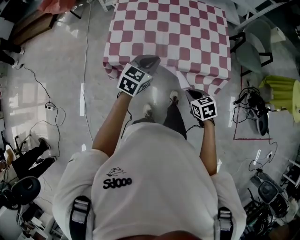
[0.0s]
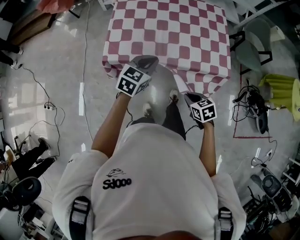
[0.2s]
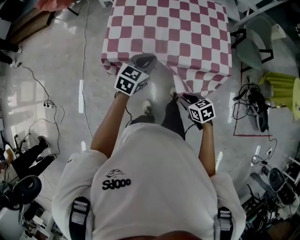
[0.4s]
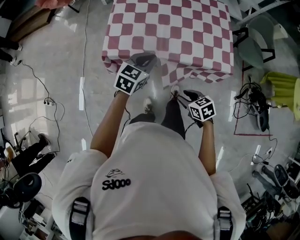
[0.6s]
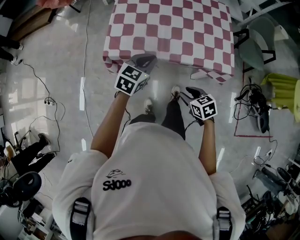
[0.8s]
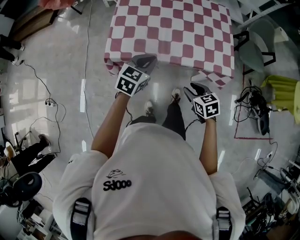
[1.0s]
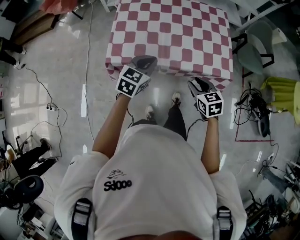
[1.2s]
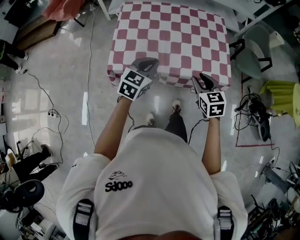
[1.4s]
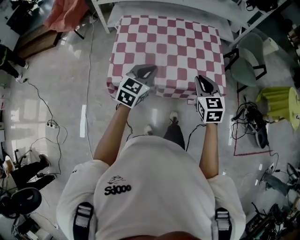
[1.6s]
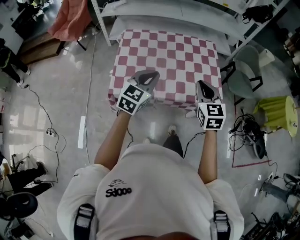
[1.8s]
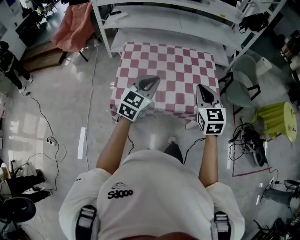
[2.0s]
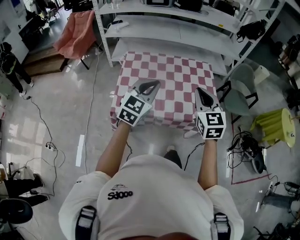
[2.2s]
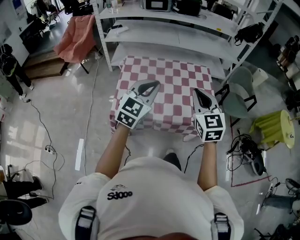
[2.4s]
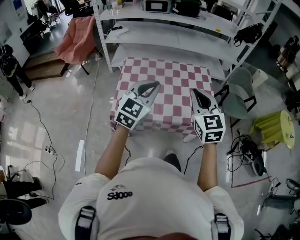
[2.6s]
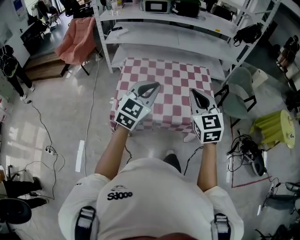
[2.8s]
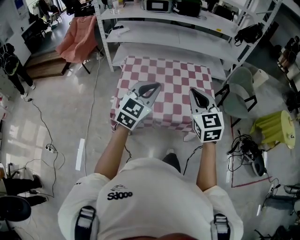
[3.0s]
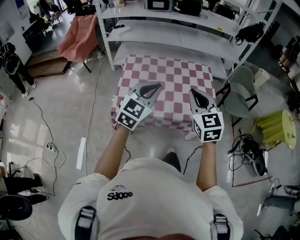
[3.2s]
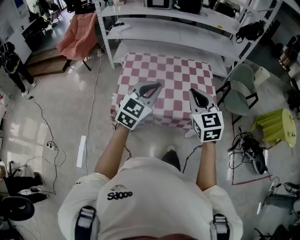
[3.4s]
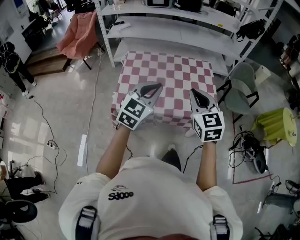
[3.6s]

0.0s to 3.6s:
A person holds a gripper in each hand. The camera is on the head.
0.0s to 1.8s: The left gripper moves upward, about 10 cm. The right gripper moves upward and forward, approximately 25 cm, tilts its fingers roughly 30 degrees upward, and opens, then closes once more.
1.8s to 3.6s: The grippers both shift upward and backward by roughly 10 cm.

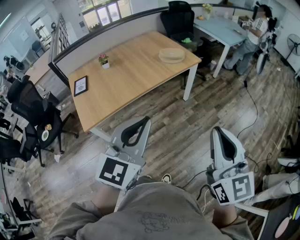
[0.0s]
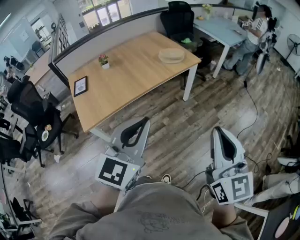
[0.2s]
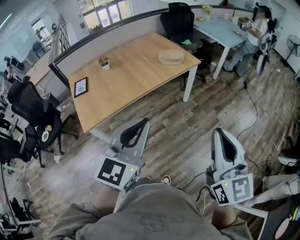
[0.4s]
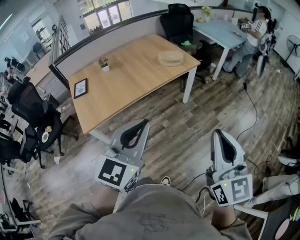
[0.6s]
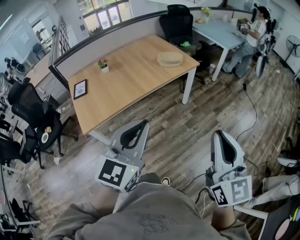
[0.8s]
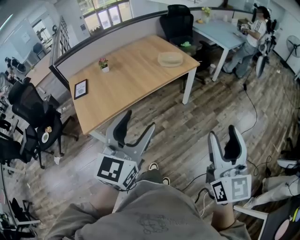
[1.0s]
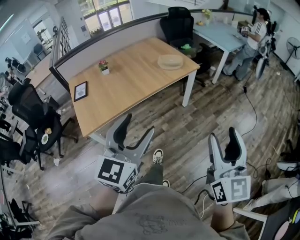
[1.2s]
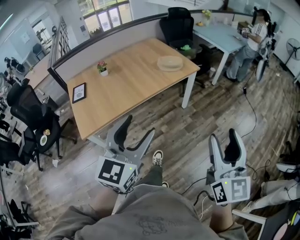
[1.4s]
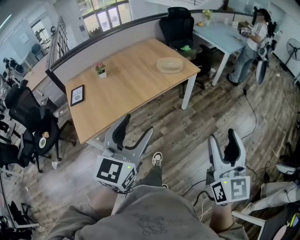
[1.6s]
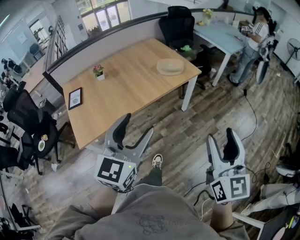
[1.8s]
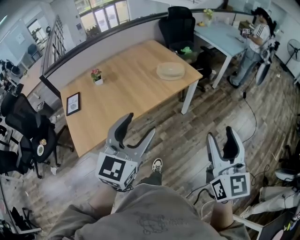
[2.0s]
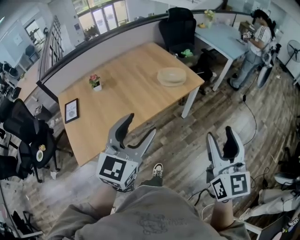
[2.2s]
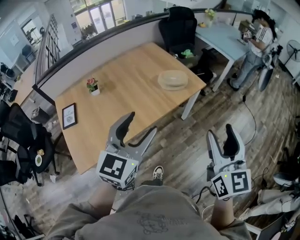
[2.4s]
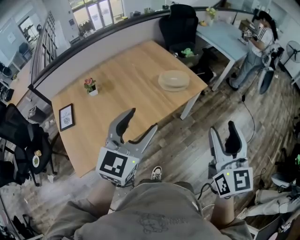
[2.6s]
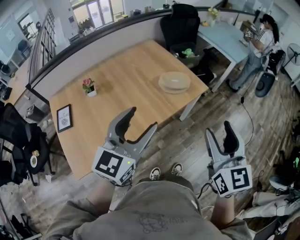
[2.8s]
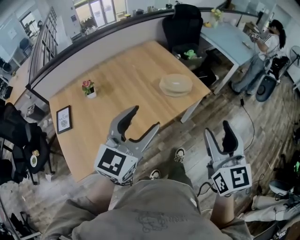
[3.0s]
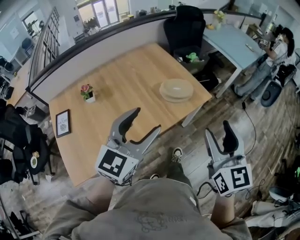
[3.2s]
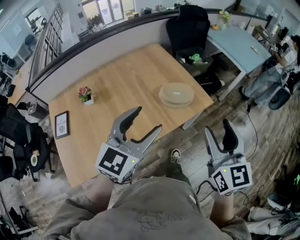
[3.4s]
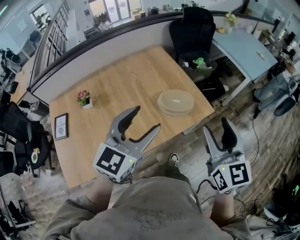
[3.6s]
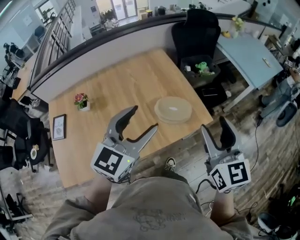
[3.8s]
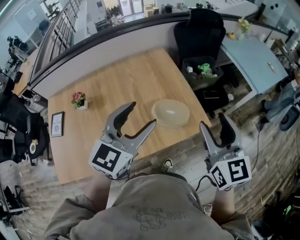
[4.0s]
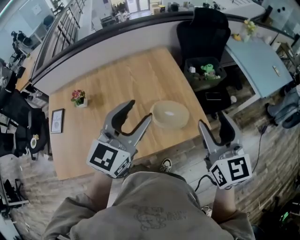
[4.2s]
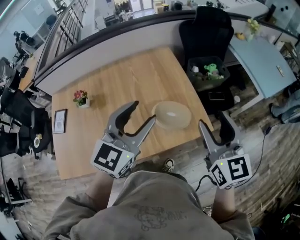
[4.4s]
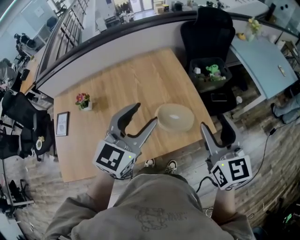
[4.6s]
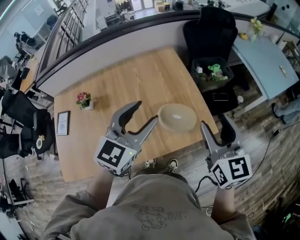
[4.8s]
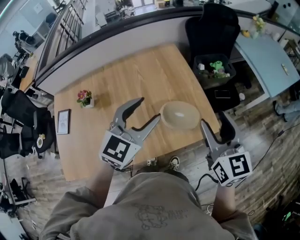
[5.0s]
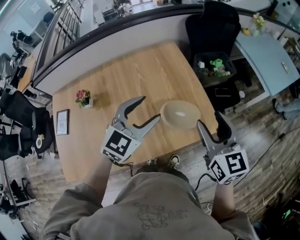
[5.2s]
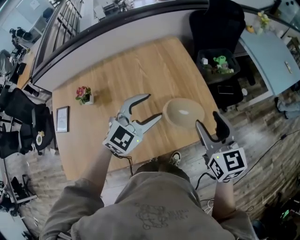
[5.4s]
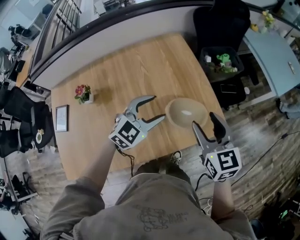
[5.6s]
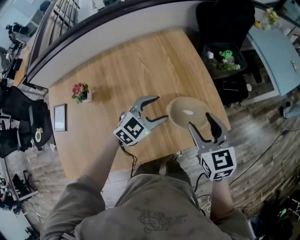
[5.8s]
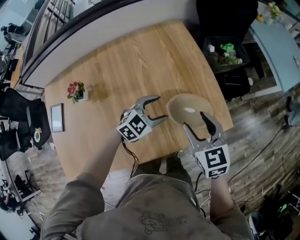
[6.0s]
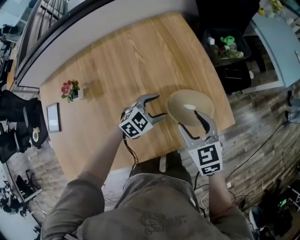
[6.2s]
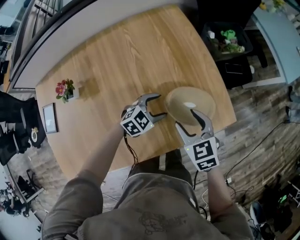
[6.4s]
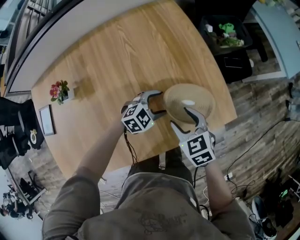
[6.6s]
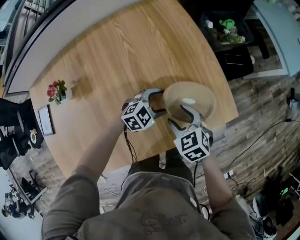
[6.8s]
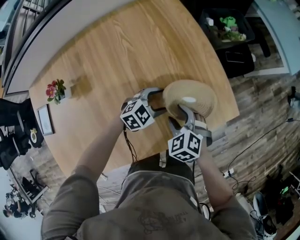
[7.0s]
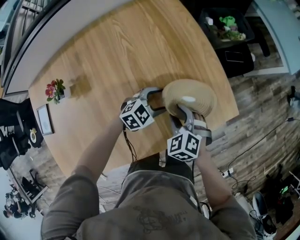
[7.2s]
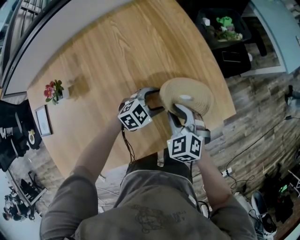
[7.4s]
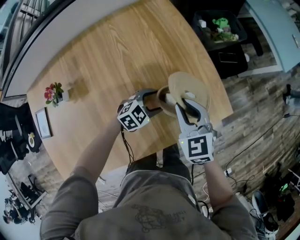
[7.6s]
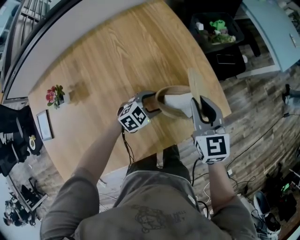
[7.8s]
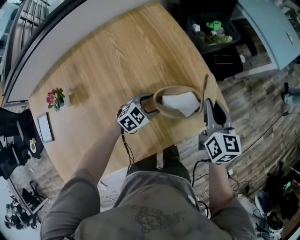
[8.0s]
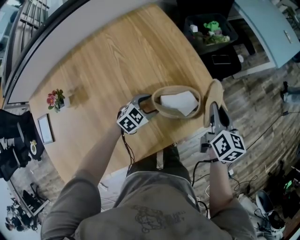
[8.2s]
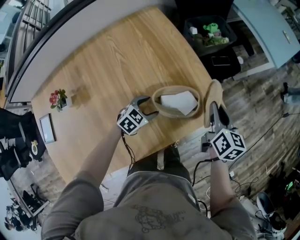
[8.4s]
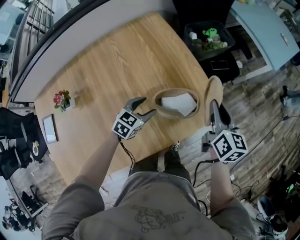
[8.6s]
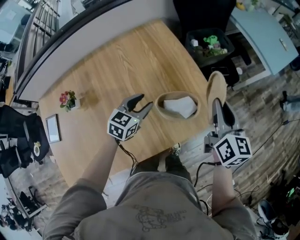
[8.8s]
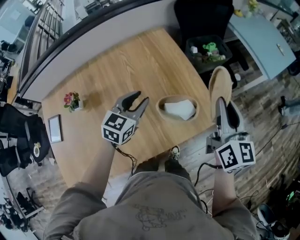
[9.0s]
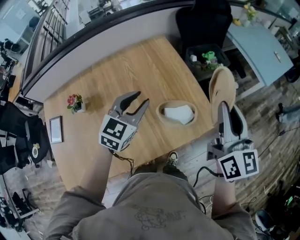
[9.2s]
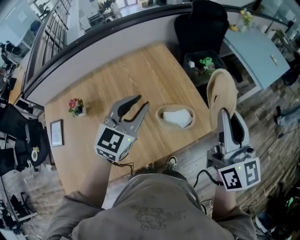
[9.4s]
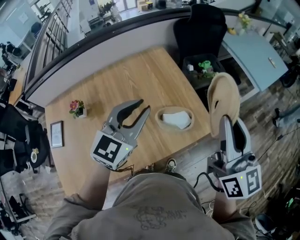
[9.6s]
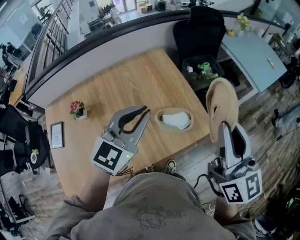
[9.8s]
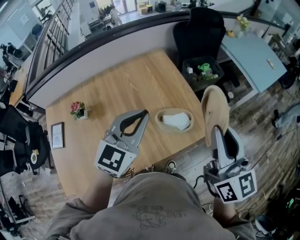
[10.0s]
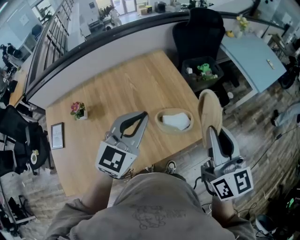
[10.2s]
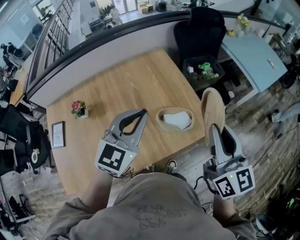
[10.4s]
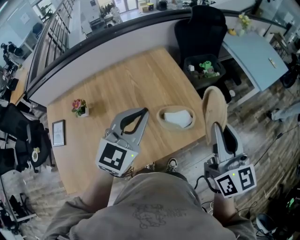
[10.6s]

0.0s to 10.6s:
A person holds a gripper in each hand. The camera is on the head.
0.0s to 1.6s: The two grippers go some 5 cm forward. The right gripper opens its fingers, while the left gripper opens up.
1.6s to 3.0s: The two grippers go about 35 cm forward.
3.0s to 4.6s: The grippers both shift forward by some 30 cm. The right gripper rotates roughly 20 degrees.
4.6s to 6.0s: The left gripper shifts roughly 30 cm downward, and rotates roughly 40 degrees. Meanwhile the right gripper heads downward and to the left, covering roughly 25 cm, and changes its angle by roughly 20 degrees.
6.0s to 7.6s: The left gripper is displaced downward by roughly 15 cm. The right gripper heads downward, covering about 10 cm, and closes its fingers.
7.6s to 9.0s: The right gripper is displaced upward and to the right by about 25 cm, and swivels approximately 40 degrees, while the left gripper is displaced upward by about 25 cm, rotates approximately 40 degrees, and closes.
9.0s to 10.6s: The right gripper heads backward and upward, covering about 15 cm. Meanwhile the left gripper travels upward and backward by approximately 20 cm, and closes its fingers.

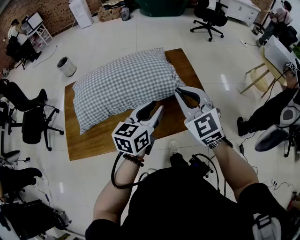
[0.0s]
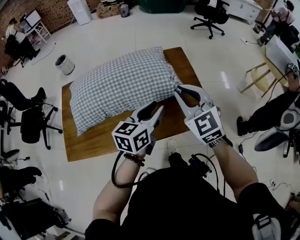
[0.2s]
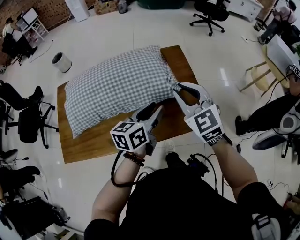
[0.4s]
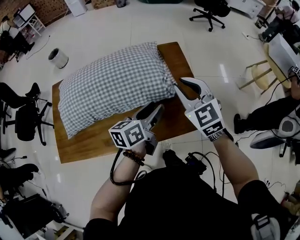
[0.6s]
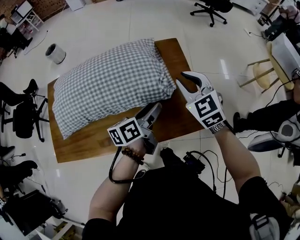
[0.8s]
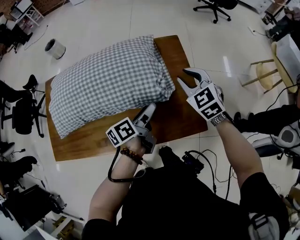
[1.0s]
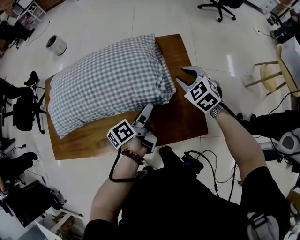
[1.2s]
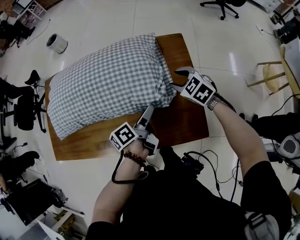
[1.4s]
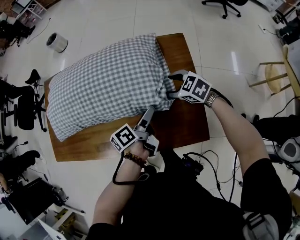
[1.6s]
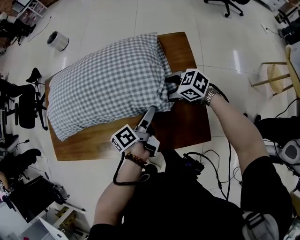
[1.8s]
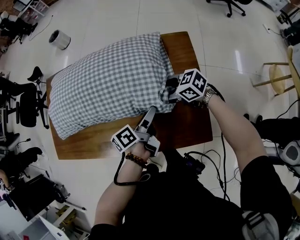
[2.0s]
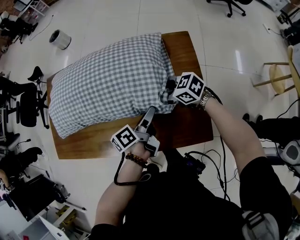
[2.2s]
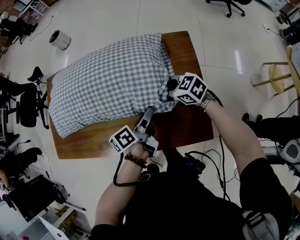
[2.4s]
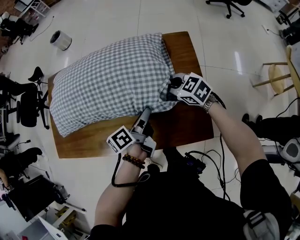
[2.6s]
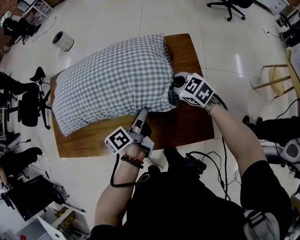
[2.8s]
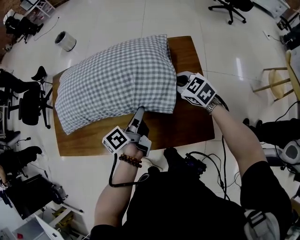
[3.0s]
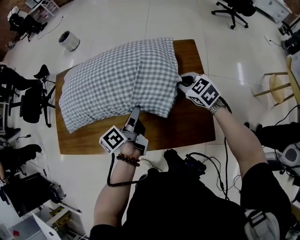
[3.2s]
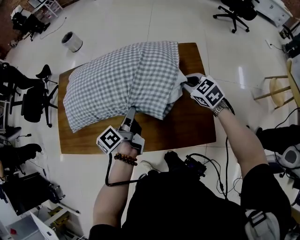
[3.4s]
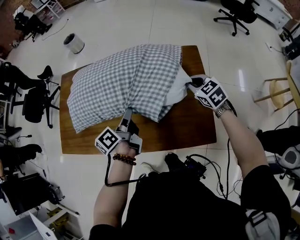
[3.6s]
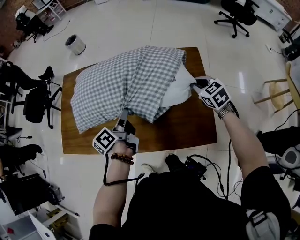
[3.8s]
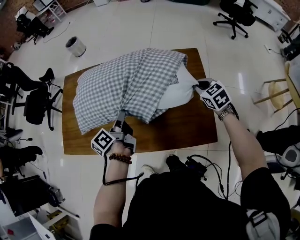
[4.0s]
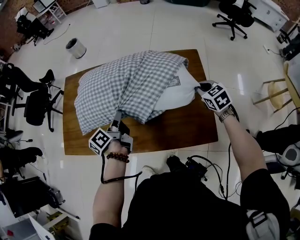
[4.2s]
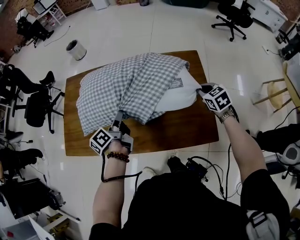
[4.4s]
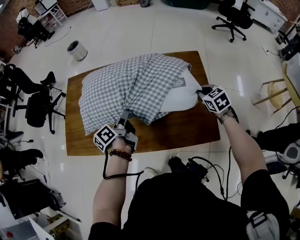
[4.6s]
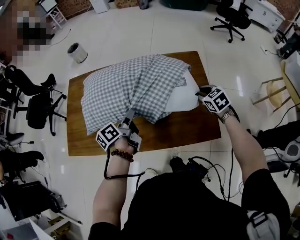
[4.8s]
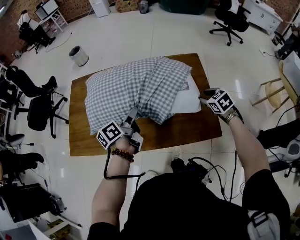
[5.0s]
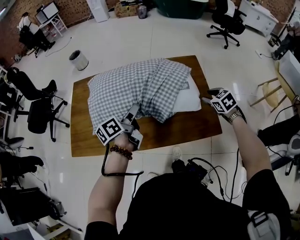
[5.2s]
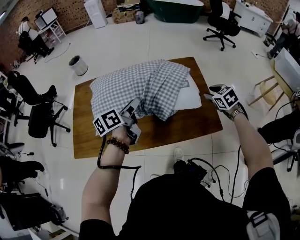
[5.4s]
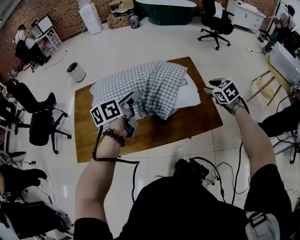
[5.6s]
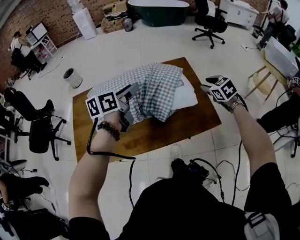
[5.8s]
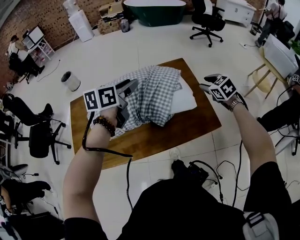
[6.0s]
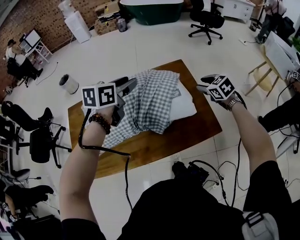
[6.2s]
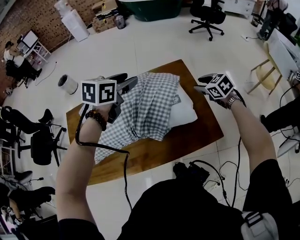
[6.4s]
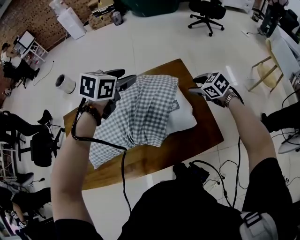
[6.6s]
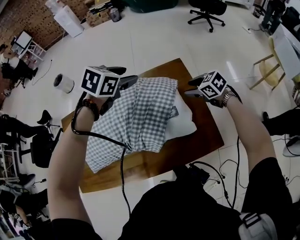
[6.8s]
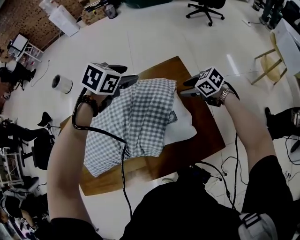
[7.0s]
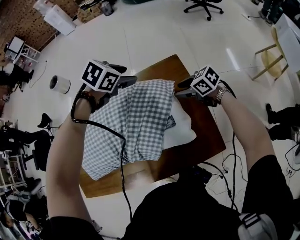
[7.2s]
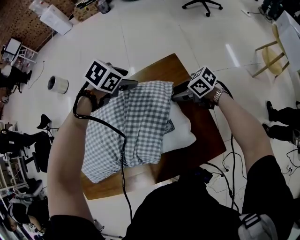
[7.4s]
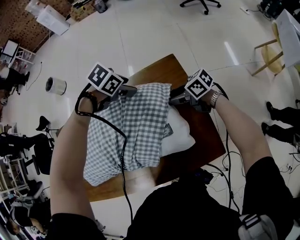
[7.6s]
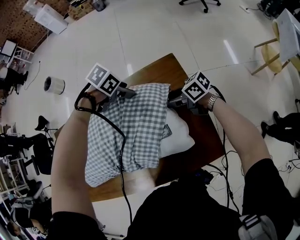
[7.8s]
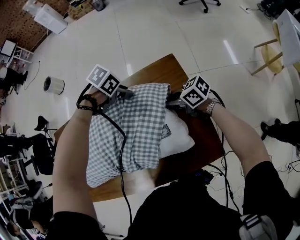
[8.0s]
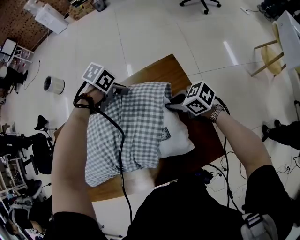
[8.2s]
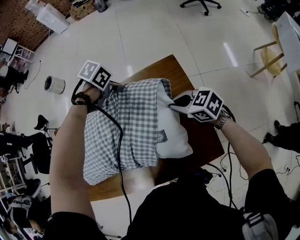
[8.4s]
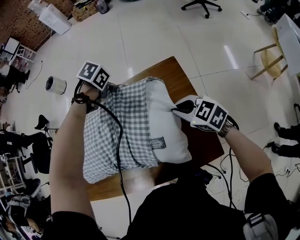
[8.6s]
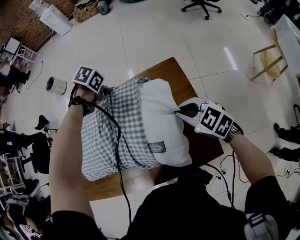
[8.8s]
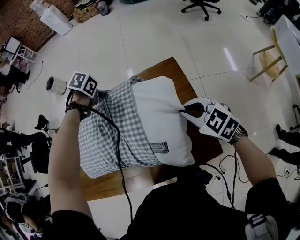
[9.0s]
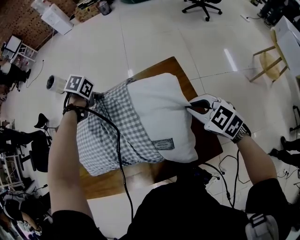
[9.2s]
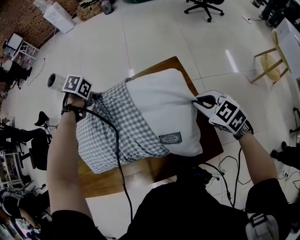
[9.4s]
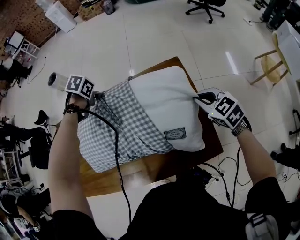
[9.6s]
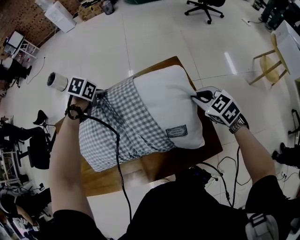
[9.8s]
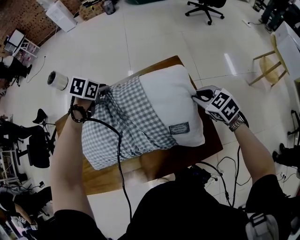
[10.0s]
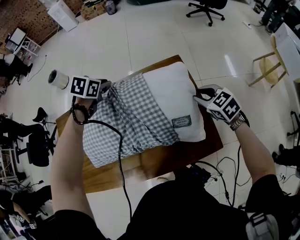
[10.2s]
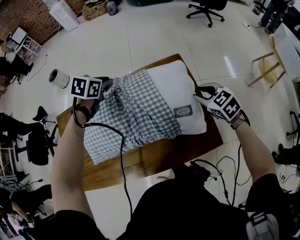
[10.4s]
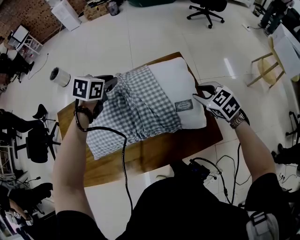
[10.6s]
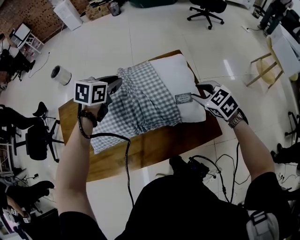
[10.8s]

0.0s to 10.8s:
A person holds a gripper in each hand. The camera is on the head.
0.0s to 1.6s: The left gripper shifts by some 40 cm, rotates around the line of its fingers by about 60 degrees, counterclockwise from behind, and opens its fingers, while the right gripper changes place by some 50 cm, tilts its fingers some 30 degrees downward, and opens up.
1.6s to 3.0s: The right gripper ends up some 5 cm from where it was, and closes, while the left gripper goes some 5 cm to the left, and closes its fingers.
3.0s to 4.6s: The right gripper moves backward, approximately 10 cm. The left gripper shifts approximately 15 cm to the left.
4.6s to 6.2s: The left gripper travels upward by about 25 cm, rolls clockwise, seen from behind, by approximately 50 degrees, and opens its fingers, while the right gripper is displaced upward and backward by some 15 cm, and opens its fingers.
6.2s to 7.8s: The right gripper moves about 30 cm, and swivels roughly 60 degrees, while the left gripper changes place by approximately 50 cm, and tips its fingers downward by approximately 40 degrees.
7.8s to 9.2s: The right gripper moves upward, about 15 cm, rotates approximately 50 degrees, and closes its fingers; the left gripper ends up some 15 cm from where it was, swivels roughly 30 degrees, and closes up.
9.2s to 10.8s: The right gripper ends up roughly 10 cm from where it was, and opens. Meanwhile the left gripper changes place by roughly 20 cm, and tilts its fingers some 30 degrees upward.
